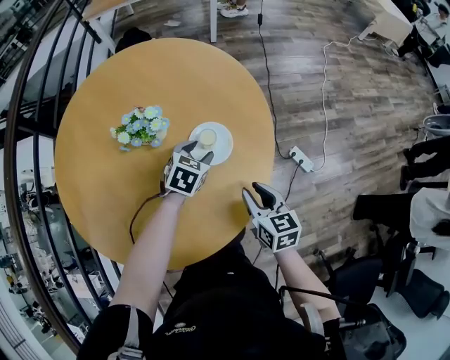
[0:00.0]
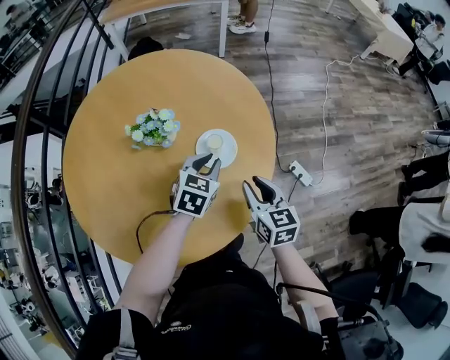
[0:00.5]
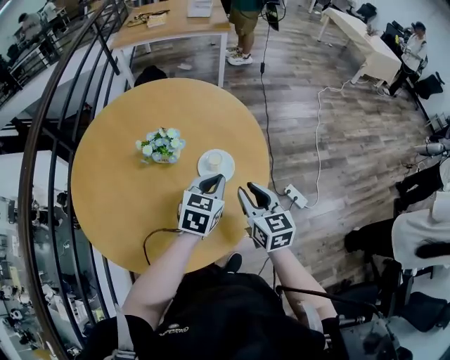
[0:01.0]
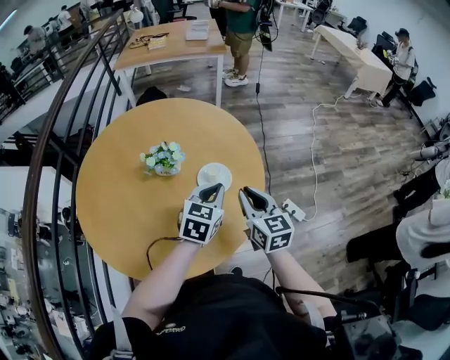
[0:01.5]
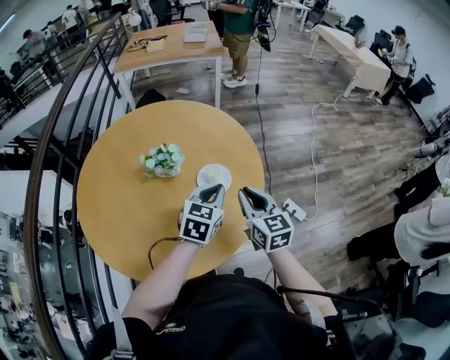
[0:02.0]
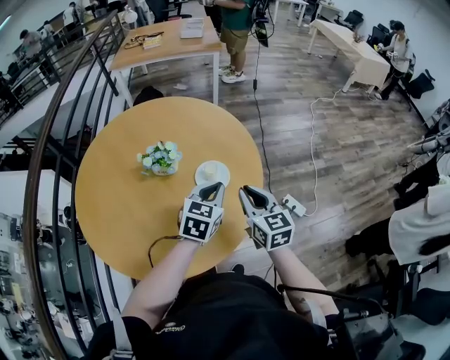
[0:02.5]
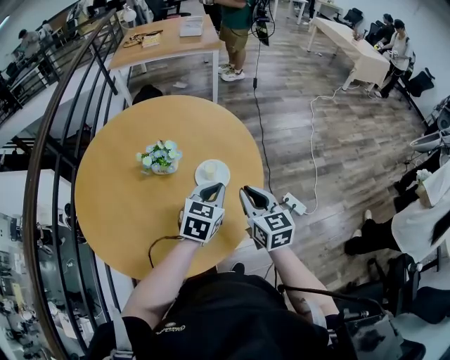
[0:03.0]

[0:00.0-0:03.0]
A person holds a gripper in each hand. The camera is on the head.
0:00.0 to 0:01.5: The left gripper heads upward and backward, covering some 20 cm, turns by roughly 20 degrees, and closes up; the right gripper heads upward, covering approximately 15 cm.
0:01.5 to 0:03.0: The grippers move only a little.

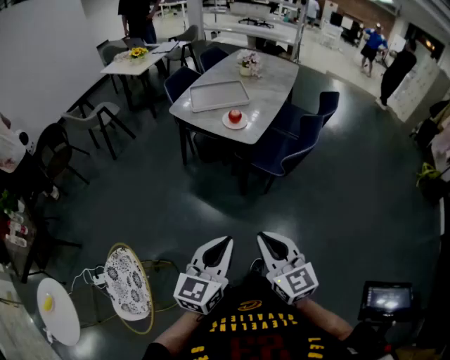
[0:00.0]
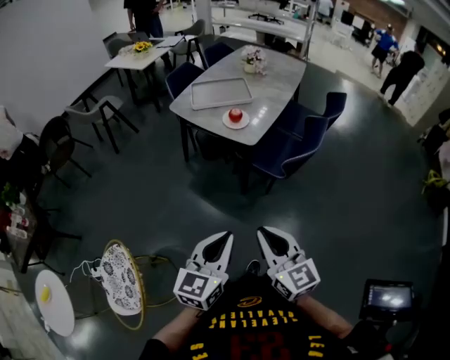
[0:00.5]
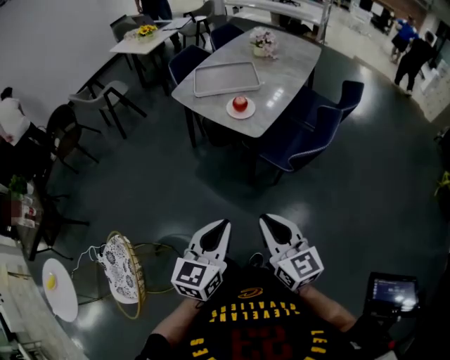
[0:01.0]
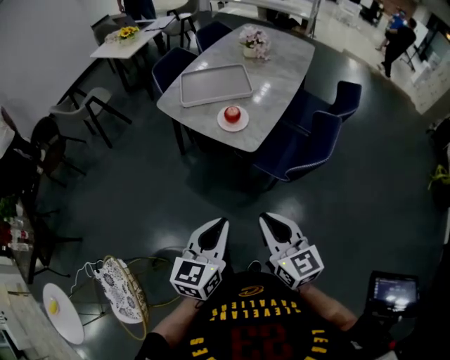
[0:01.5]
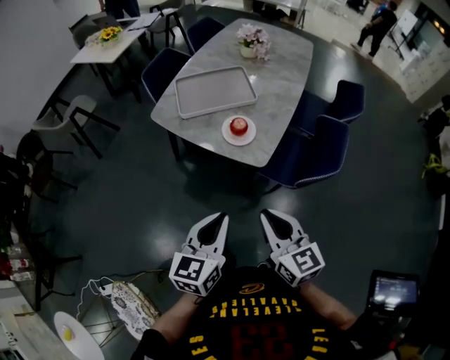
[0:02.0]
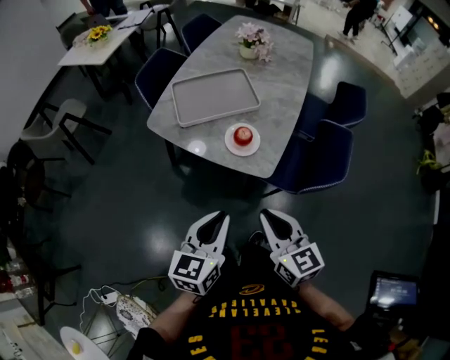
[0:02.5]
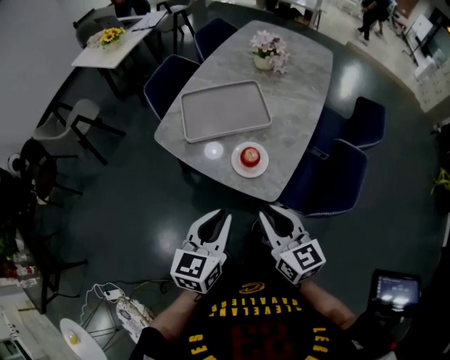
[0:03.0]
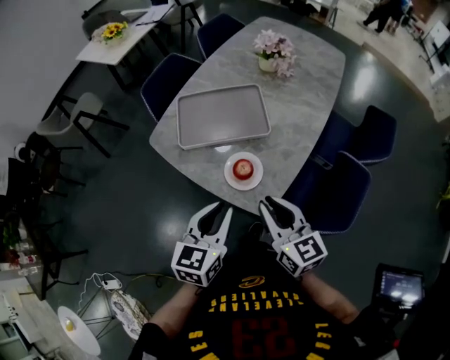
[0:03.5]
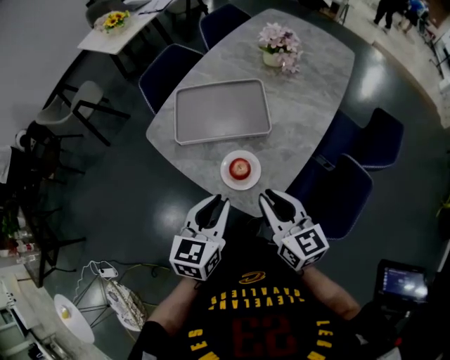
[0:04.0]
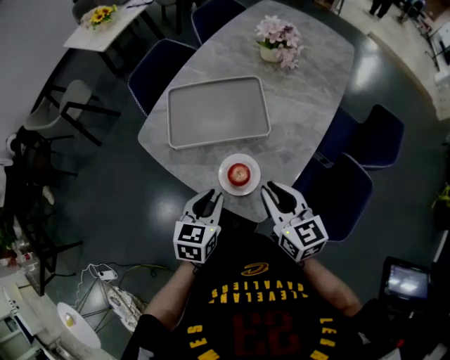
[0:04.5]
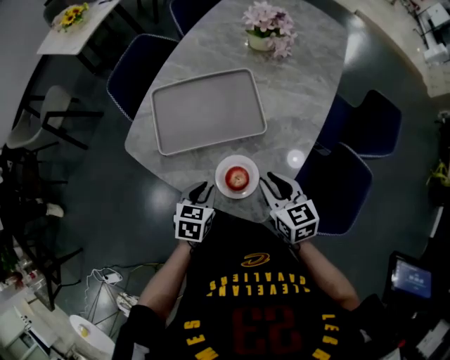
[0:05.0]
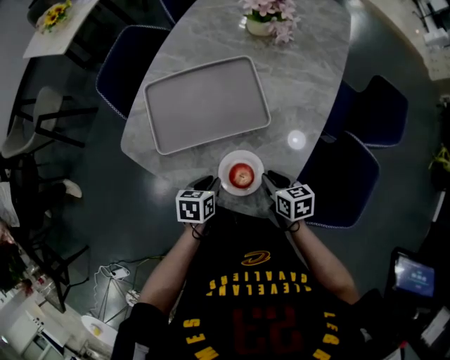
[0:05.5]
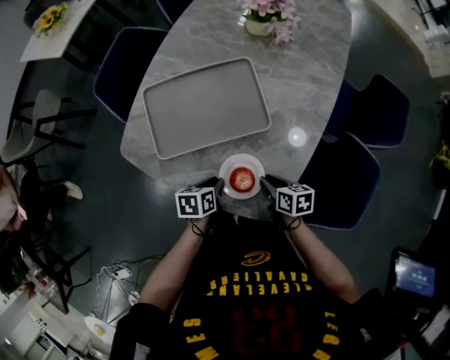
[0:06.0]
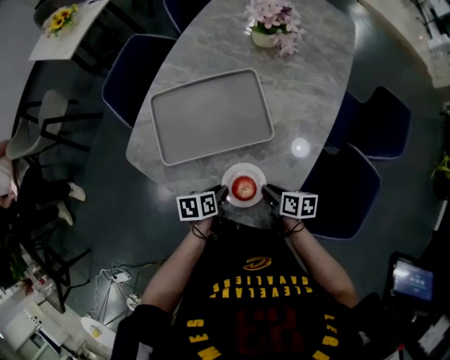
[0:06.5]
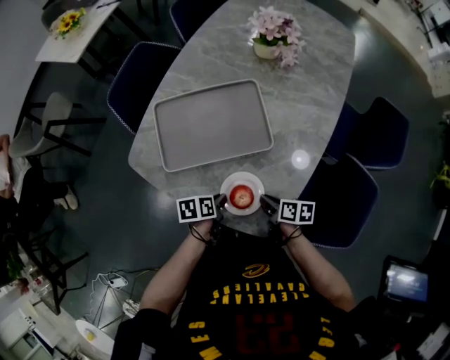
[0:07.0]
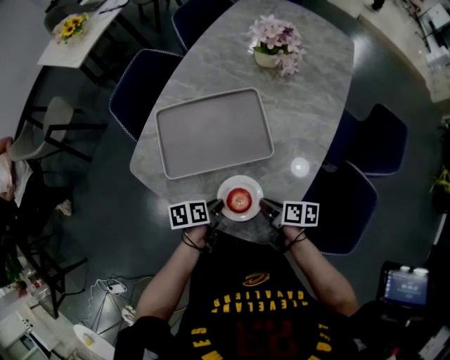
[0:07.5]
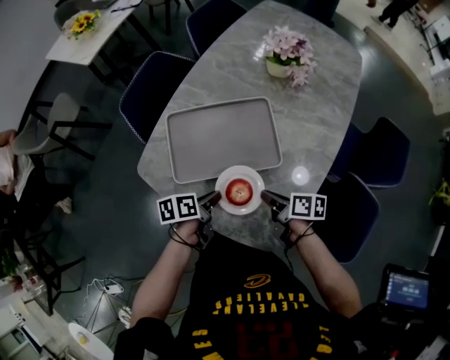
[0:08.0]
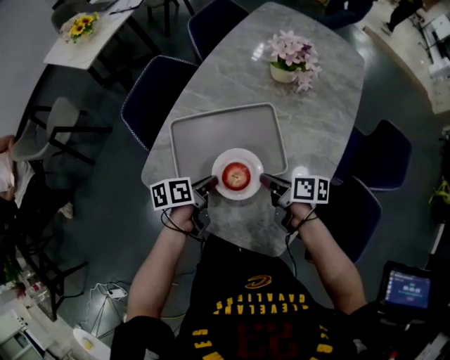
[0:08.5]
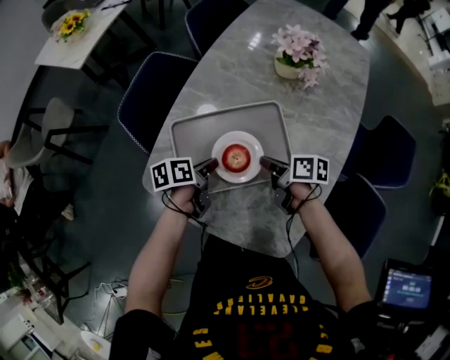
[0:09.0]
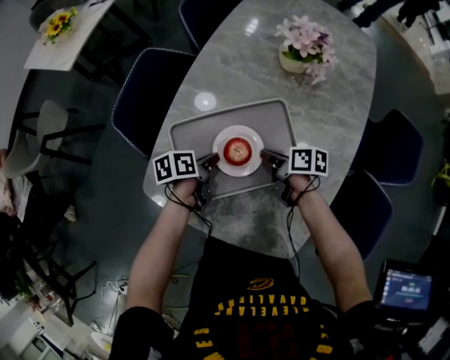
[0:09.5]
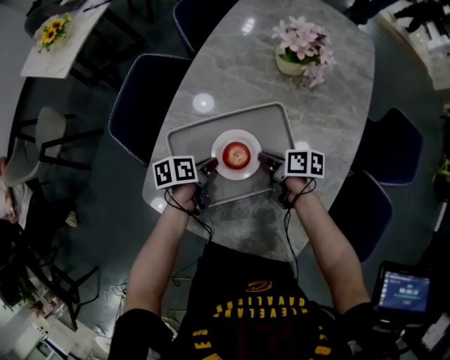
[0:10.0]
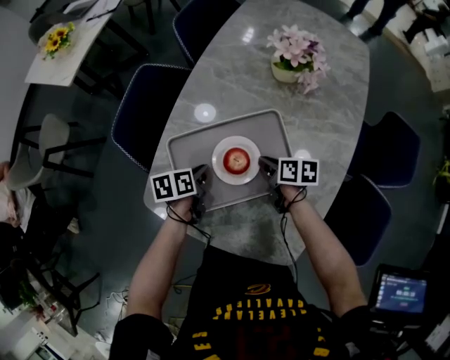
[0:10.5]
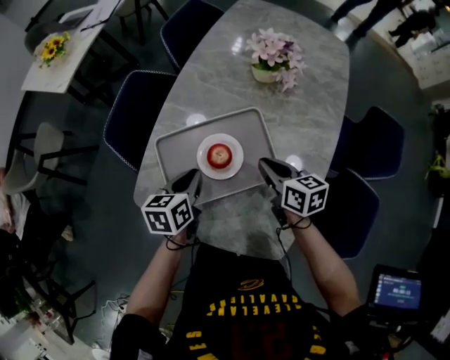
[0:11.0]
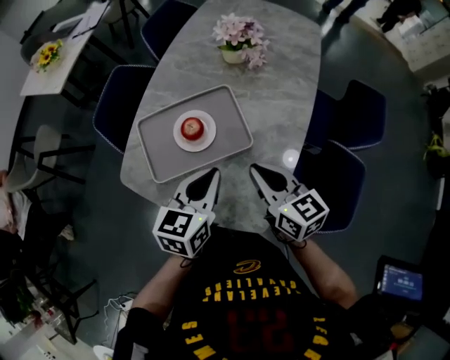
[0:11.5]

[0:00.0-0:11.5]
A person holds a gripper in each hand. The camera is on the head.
0:00.0 to 0:02.0: The two grippers go about 35 cm forward.
0:02.0 to 0:04.0: Both grippers travel together forward, approximately 30 cm.
0:04.0 to 0:06.0: The right gripper heads downward, covering some 25 cm, and tips its fingers downward by some 40 degrees; the left gripper moves downward and forward, approximately 30 cm, and rotates about 40 degrees.
0:06.0 to 0:07.5: The grippers move only a little.
0:07.5 to 0:09.5: The two grippers go some 25 cm forward.
0:09.5 to 0:11.5: The left gripper travels upward, backward and to the right by roughly 30 cm, and rotates around the line of its fingers by approximately 50 degrees, clockwise from behind, while the right gripper goes approximately 30 cm upward and backward, and rolls counterclockwise, seen from behind, by approximately 40 degrees.

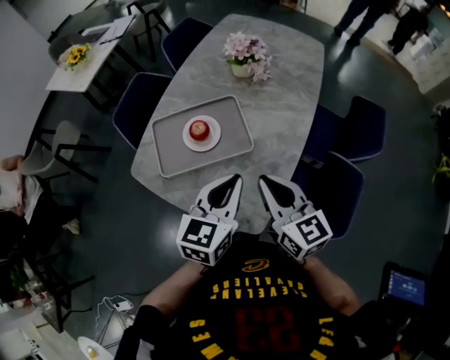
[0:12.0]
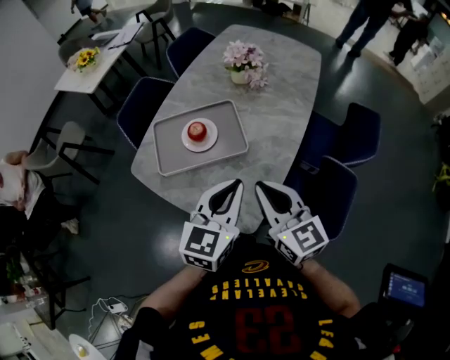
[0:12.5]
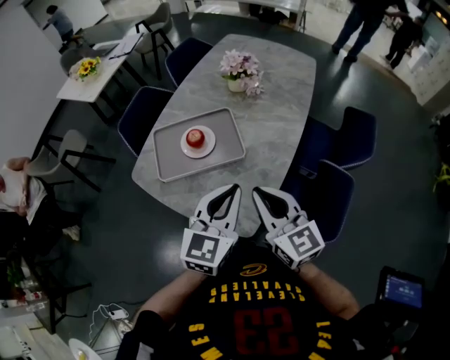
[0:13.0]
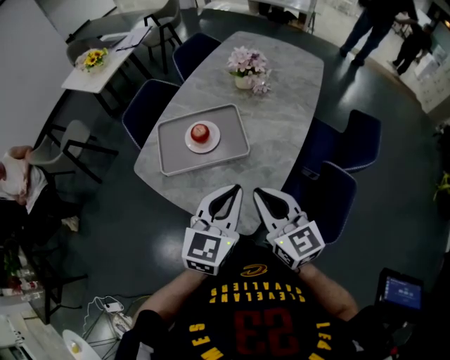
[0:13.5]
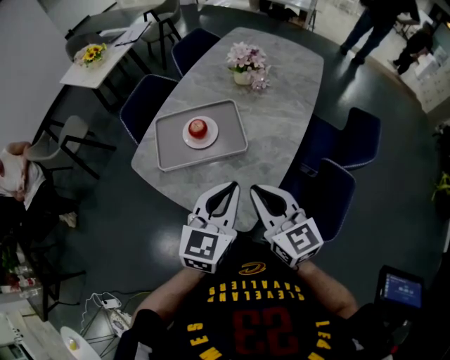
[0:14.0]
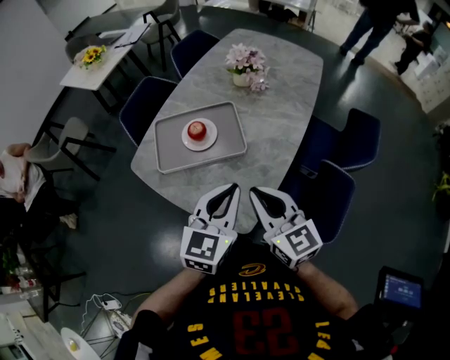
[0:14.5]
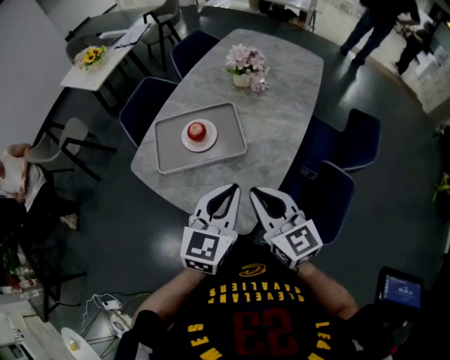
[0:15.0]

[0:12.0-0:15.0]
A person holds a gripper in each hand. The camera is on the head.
0:12.0 to 0:13.5: Both grippers move backward, approximately 5 cm.
0:13.5 to 0:15.0: Both grippers stay about where they are.

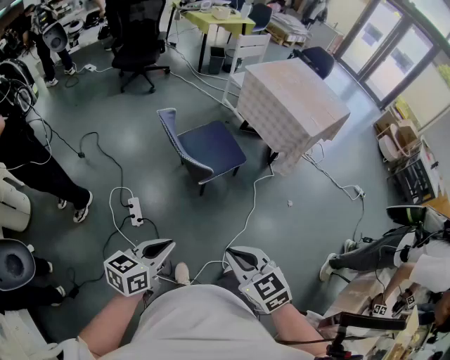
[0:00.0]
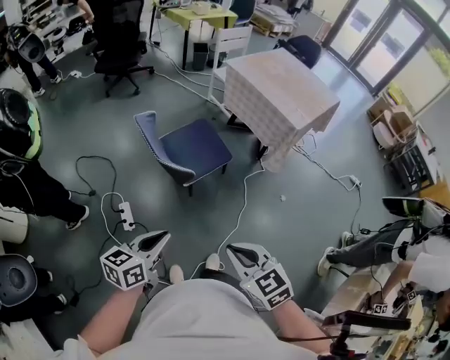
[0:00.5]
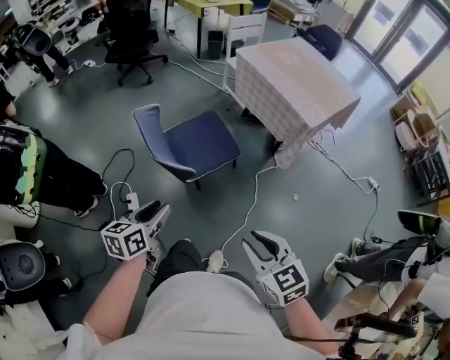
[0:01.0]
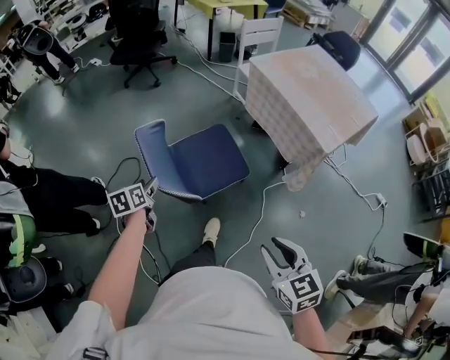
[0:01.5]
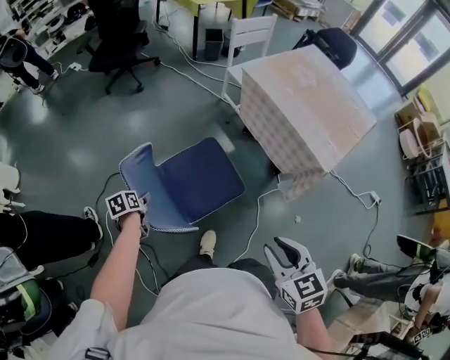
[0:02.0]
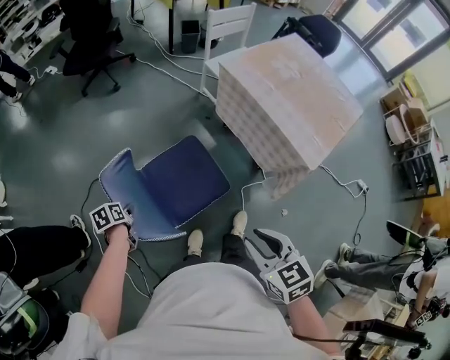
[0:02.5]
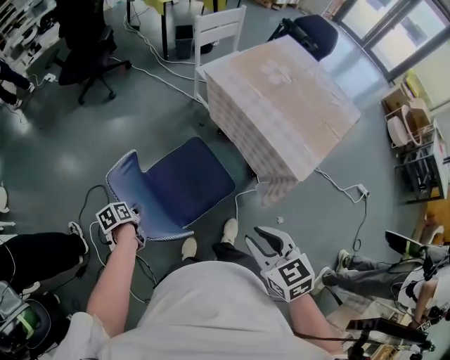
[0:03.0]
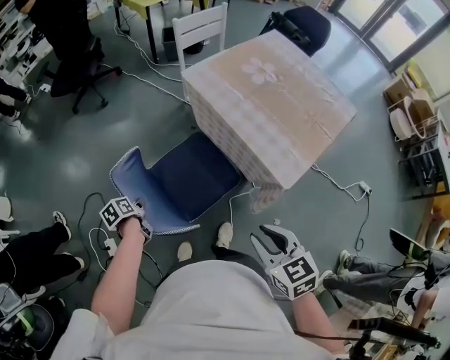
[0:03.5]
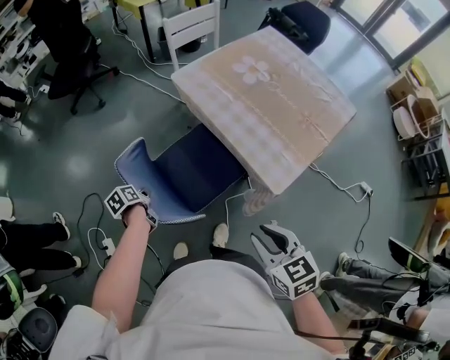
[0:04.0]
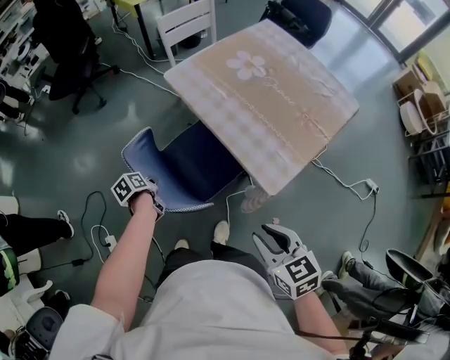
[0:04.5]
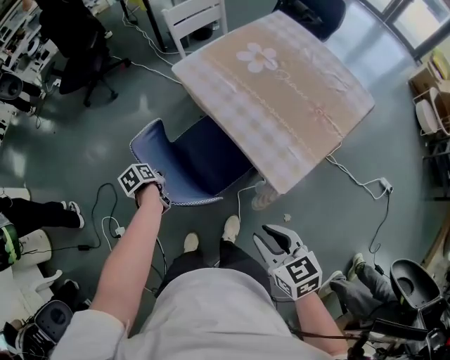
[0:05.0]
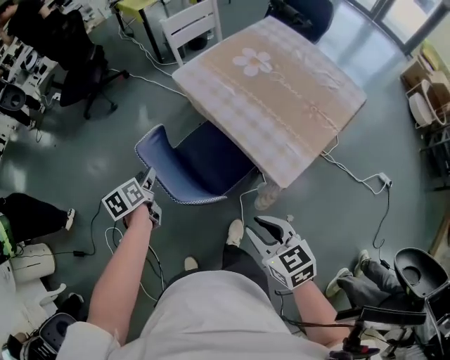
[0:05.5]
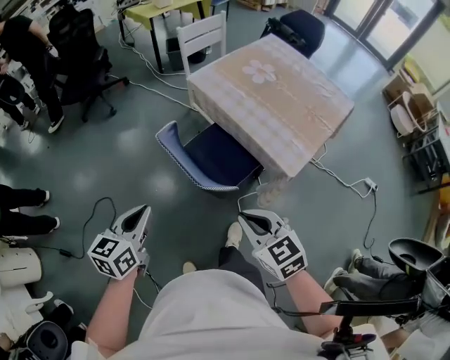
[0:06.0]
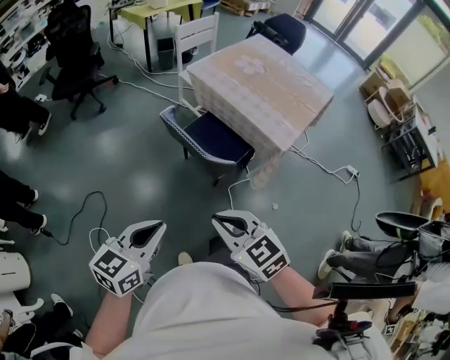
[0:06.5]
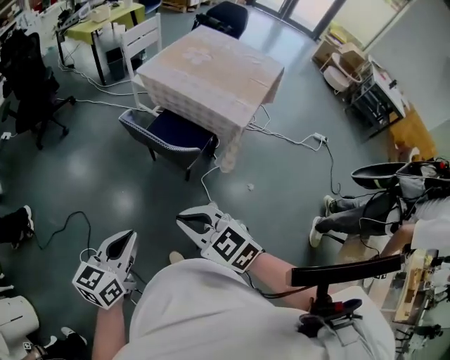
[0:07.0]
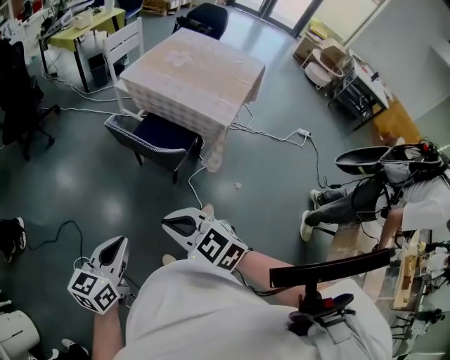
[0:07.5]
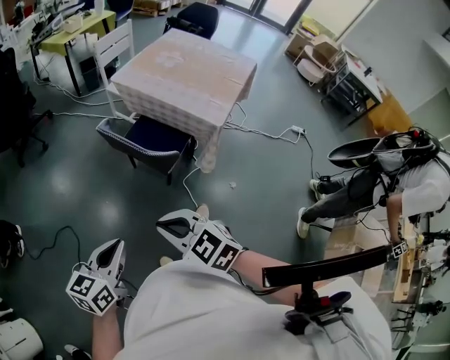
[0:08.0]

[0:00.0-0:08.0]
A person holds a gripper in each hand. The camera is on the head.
0:00.0 to 0:02.0: The pair of grippers is taken forward, roughly 40 cm. The left gripper moves downward, roughly 25 cm, tips its fingers downward by about 40 degrees, and opens its fingers, while the right gripper opens its fingers.
0:02.0 to 0:04.0: Both grippers move to the right and forward, some 30 cm. The left gripper closes its fingers.
0:04.0 to 0:06.0: The left gripper heads upward and backward, covering roughly 30 cm, rotates around the line of its fingers by roughly 50 degrees, clockwise from behind, and opens, then closes once more. The right gripper heads to the left, covering roughly 15 cm, and closes its fingers.
0:06.0 to 0:08.0: The right gripper is displaced backward and to the left by approximately 25 cm; the left gripper goes approximately 20 cm backward, and rotates about 20 degrees.
